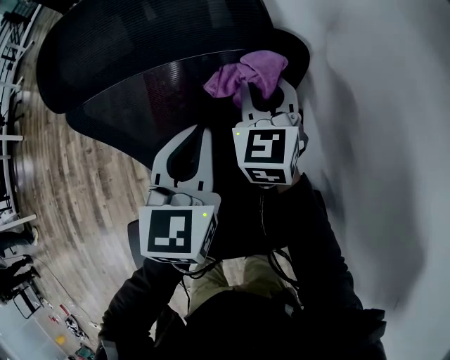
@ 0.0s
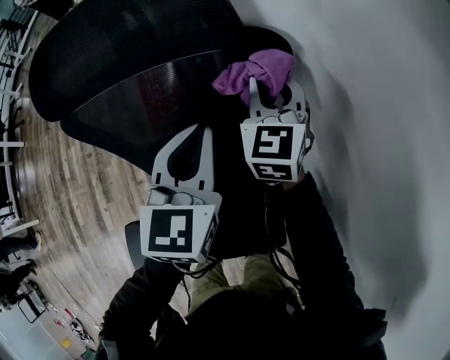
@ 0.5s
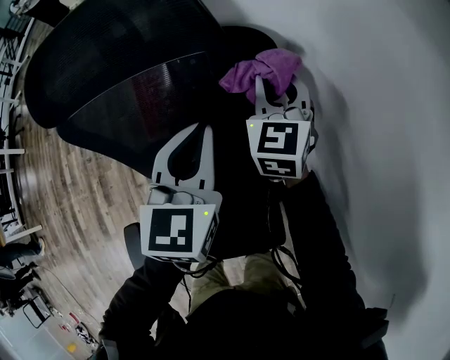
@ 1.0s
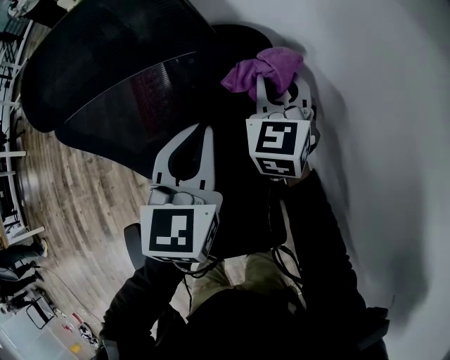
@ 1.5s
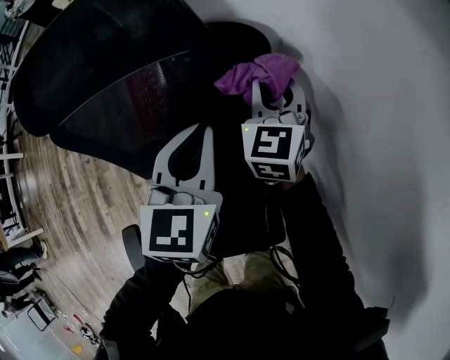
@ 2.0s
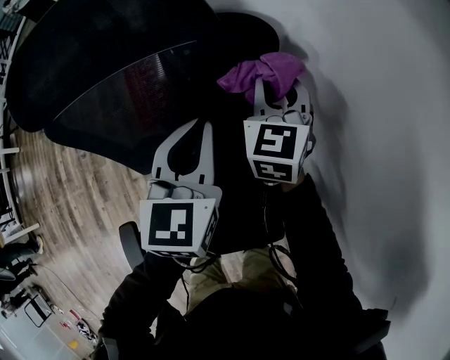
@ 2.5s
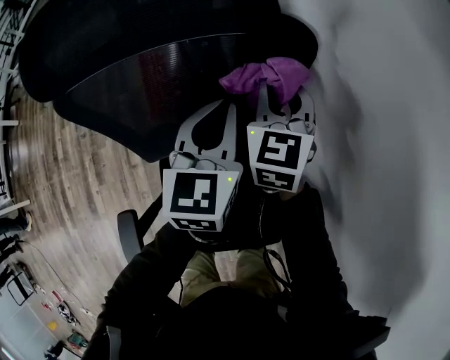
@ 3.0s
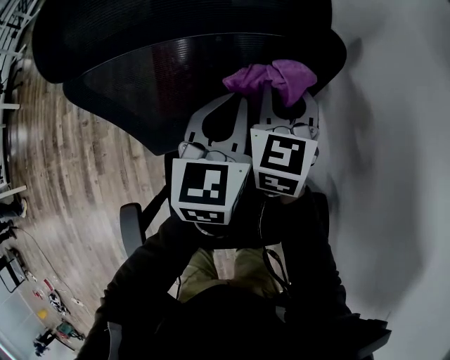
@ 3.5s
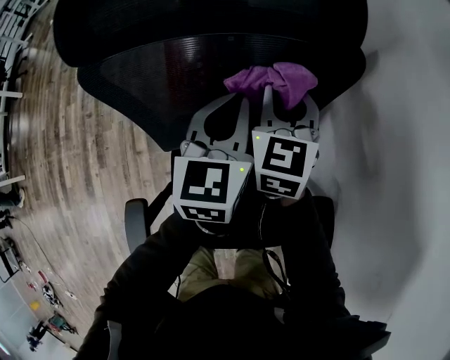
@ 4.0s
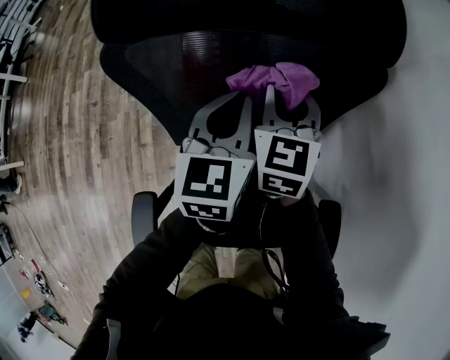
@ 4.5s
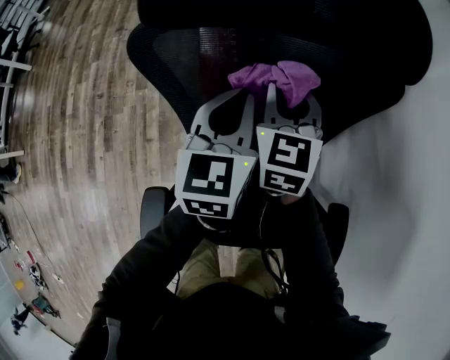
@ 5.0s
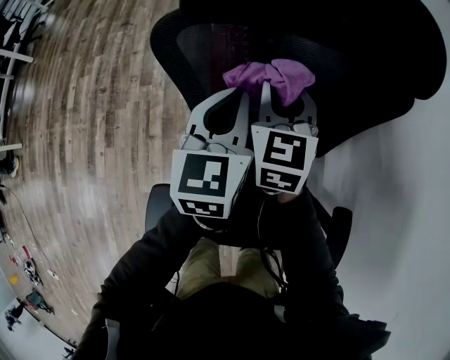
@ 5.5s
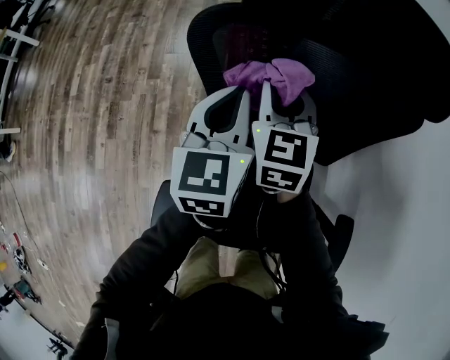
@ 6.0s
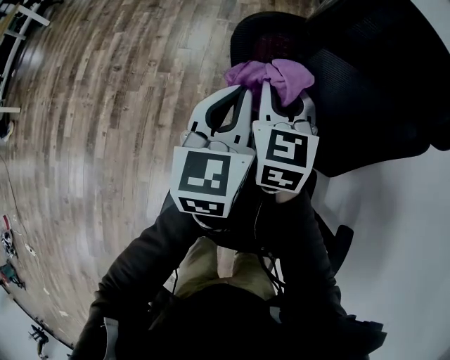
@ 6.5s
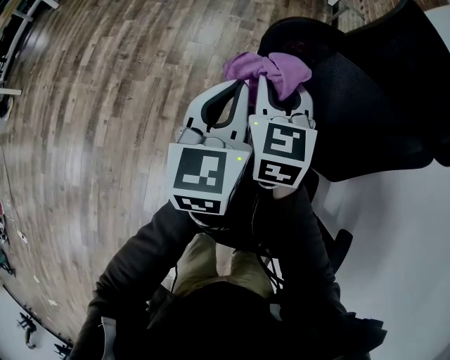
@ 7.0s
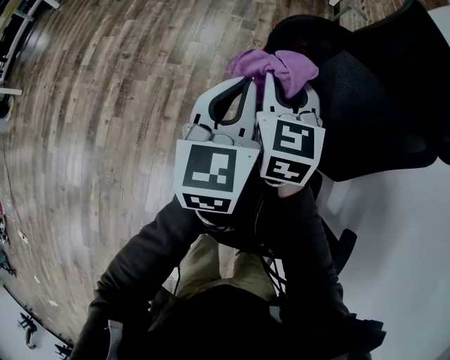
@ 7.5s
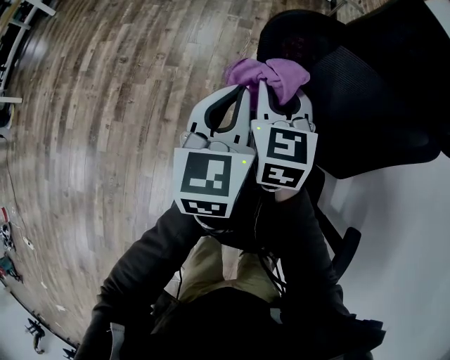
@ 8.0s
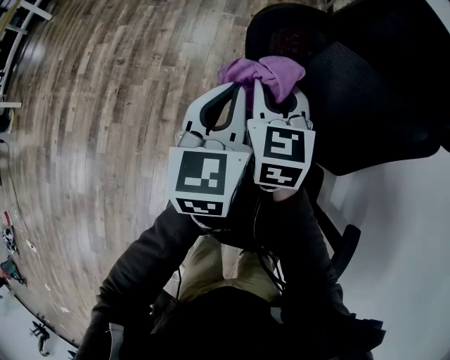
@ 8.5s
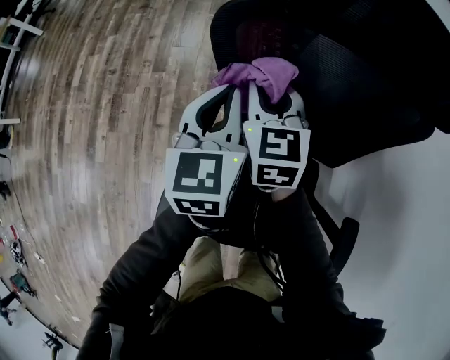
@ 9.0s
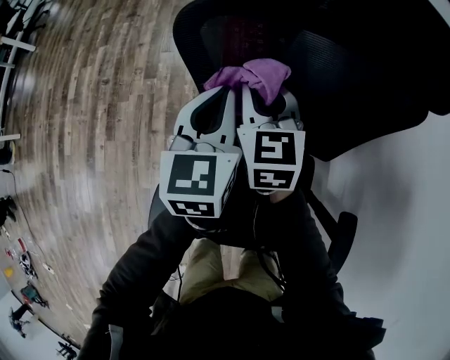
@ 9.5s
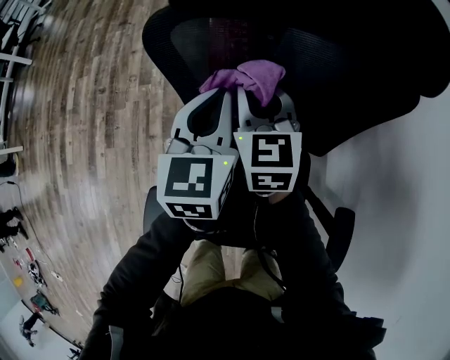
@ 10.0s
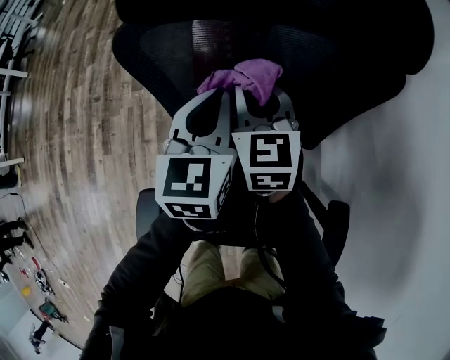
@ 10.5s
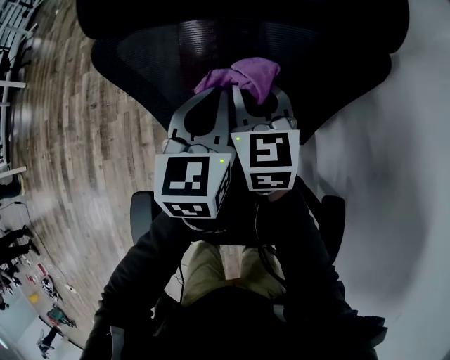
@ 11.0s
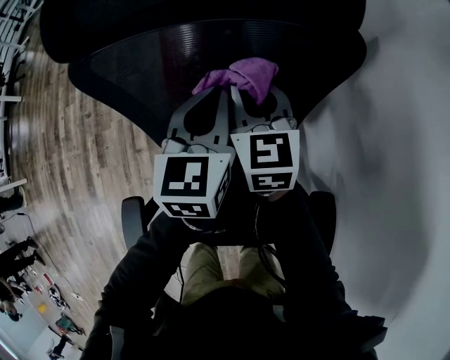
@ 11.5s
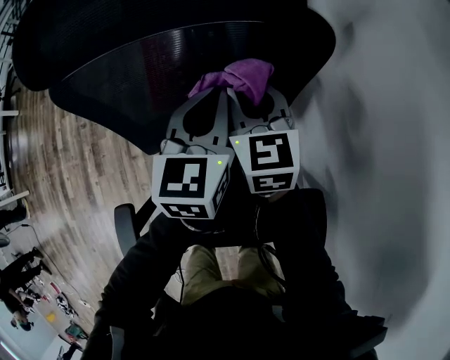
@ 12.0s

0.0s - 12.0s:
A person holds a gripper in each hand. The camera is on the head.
0.0s - 2.0s: Both grippers move to the right, roughly 10 cm.
2.0s - 4.0s: The left gripper shifts roughly 10 cm to the left and downward. The right gripper is displaced to the left by roughly 15 cm.
4.0s - 6.0s: The two grippers go approximately 20 cm to the left.
6.0s - 8.0s: Both grippers travel together to the left, some 10 cm.
8.0s - 10.0s: The two grippers go about 15 cm to the right.
10.0s - 12.0s: The two grippers go roughly 20 cm to the right.

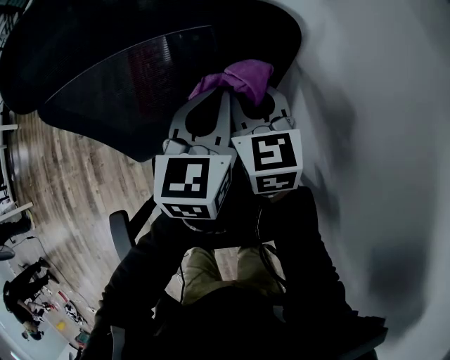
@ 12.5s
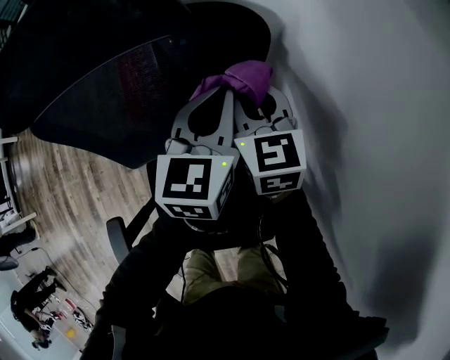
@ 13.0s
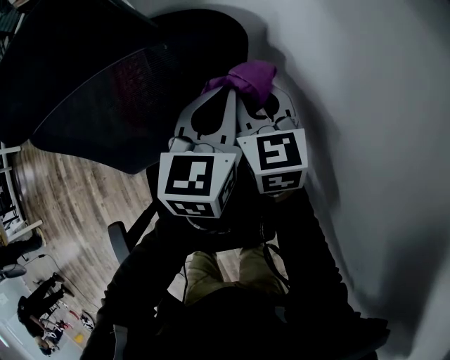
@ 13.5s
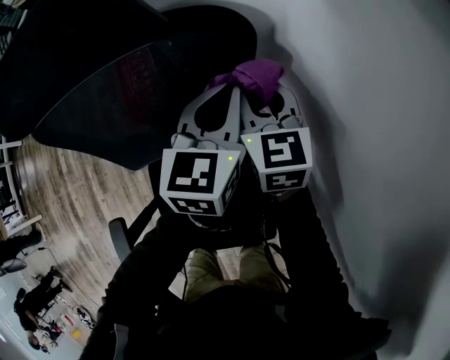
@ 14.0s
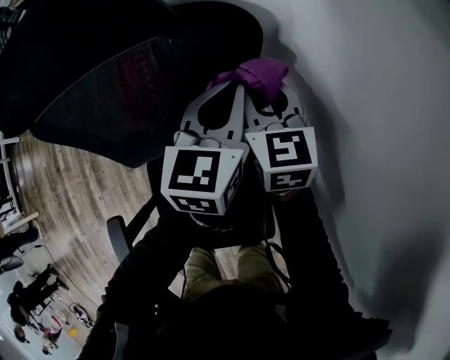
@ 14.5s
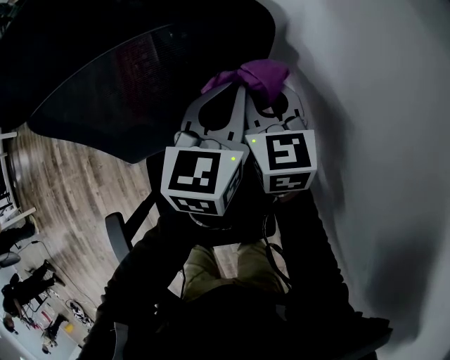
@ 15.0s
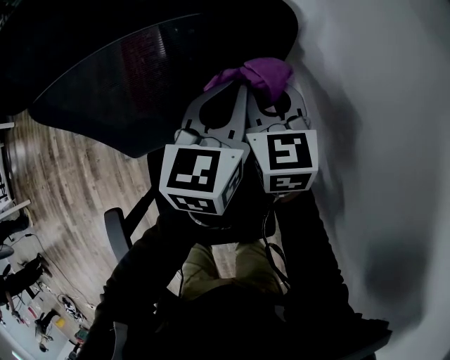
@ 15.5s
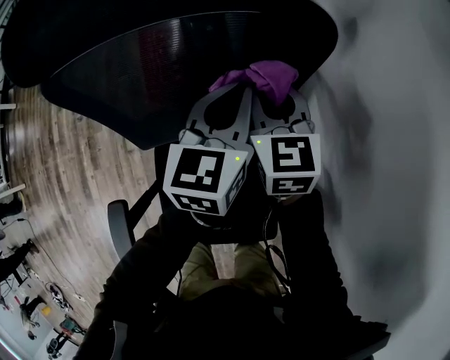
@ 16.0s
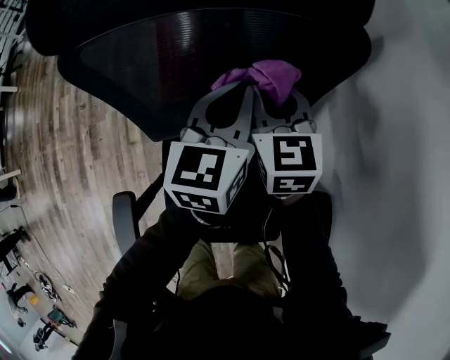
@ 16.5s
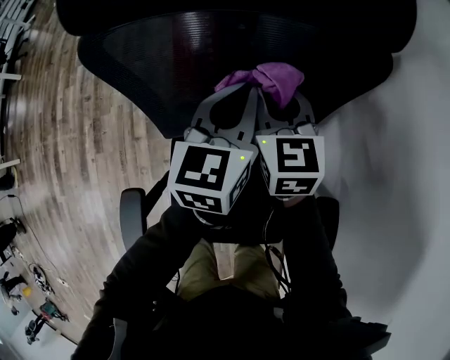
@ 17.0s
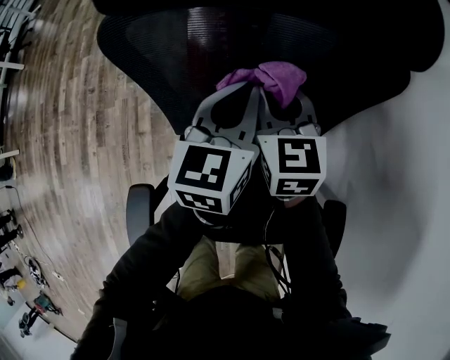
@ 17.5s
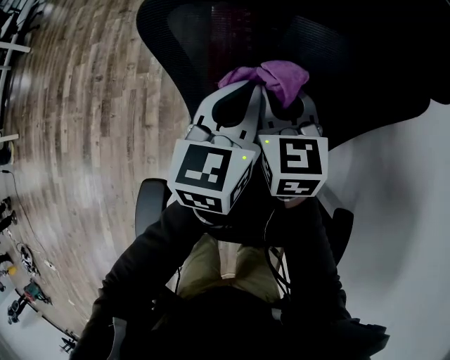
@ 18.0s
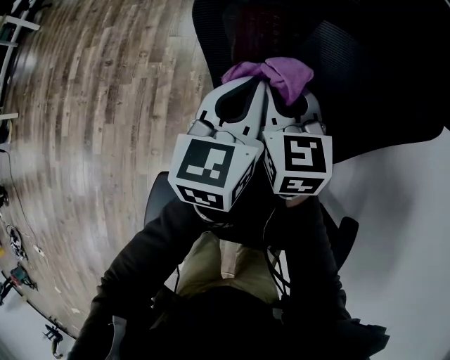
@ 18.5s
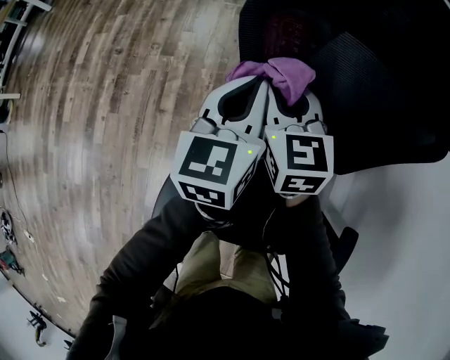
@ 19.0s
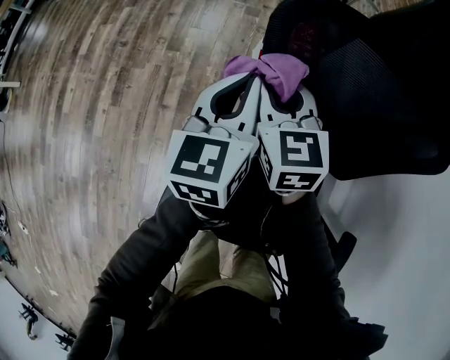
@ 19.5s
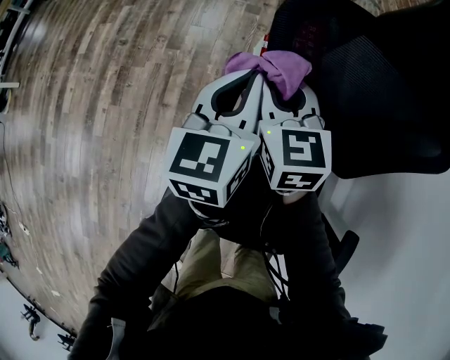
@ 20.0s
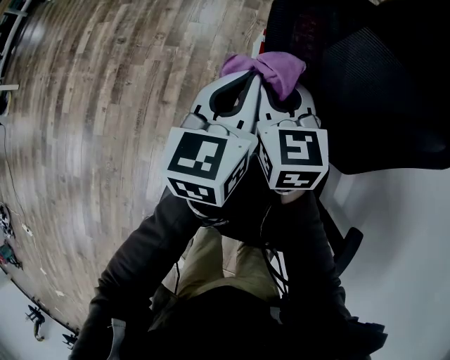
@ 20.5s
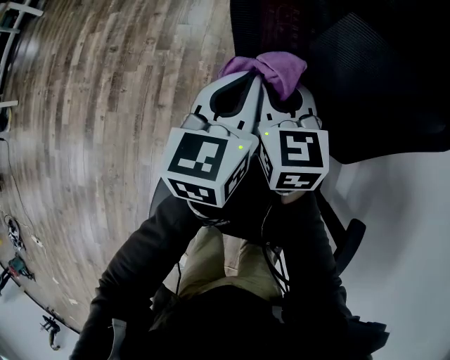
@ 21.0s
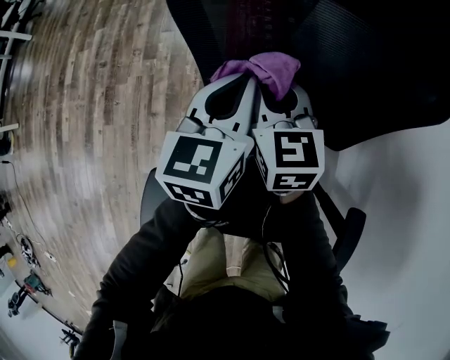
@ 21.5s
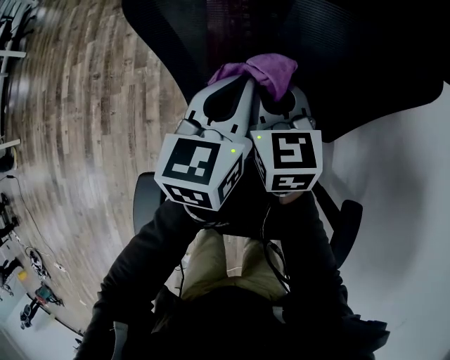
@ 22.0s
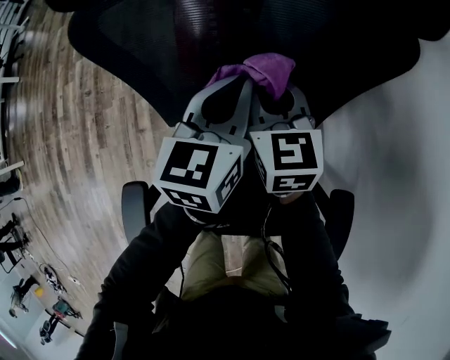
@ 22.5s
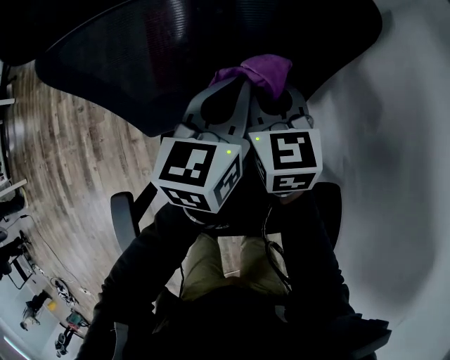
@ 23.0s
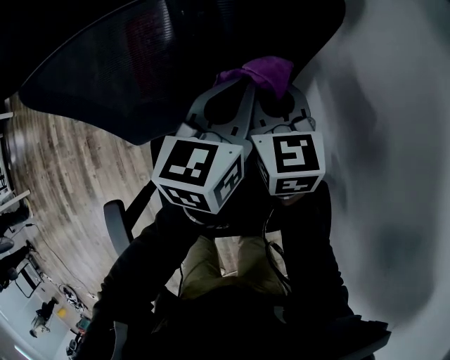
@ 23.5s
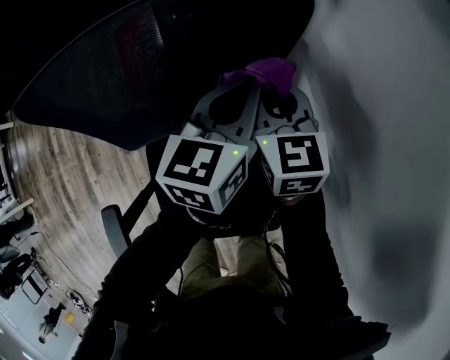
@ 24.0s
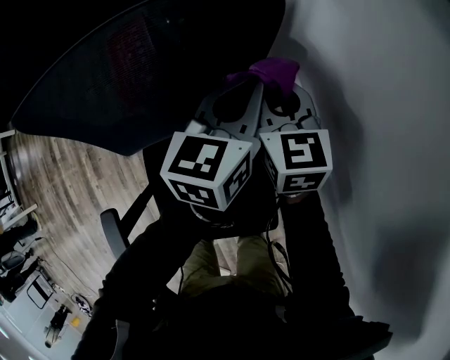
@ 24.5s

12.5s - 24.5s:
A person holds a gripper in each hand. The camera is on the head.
12.5s - 14.5s: The grippers both shift to the right by about 10 cm.
14.5s - 16.5s: Both grippers move to the left, some 15 cm.
16.5s - 18.5s: The grippers both shift to the left by about 25 cm.
18.5s - 20.5s: The two grippers go about 10 cm to the left.
20.5s - 22.5s: Both grippers travel together to the right, about 25 cm.
22.5s - 24.5s: Both grippers move to the right, roughly 25 cm.

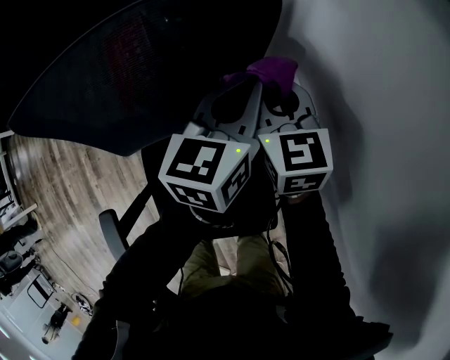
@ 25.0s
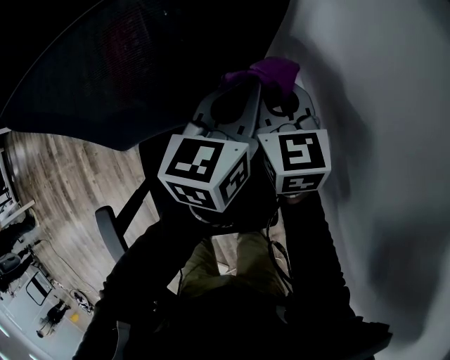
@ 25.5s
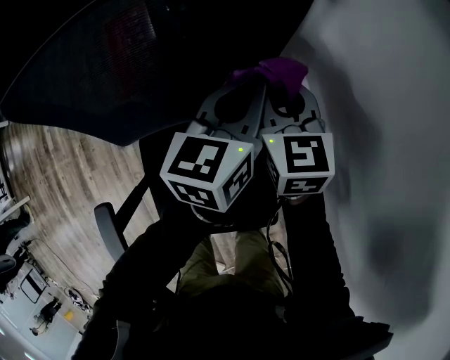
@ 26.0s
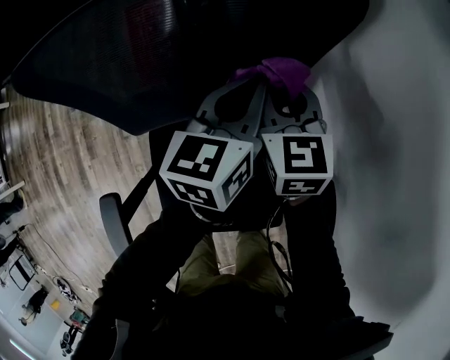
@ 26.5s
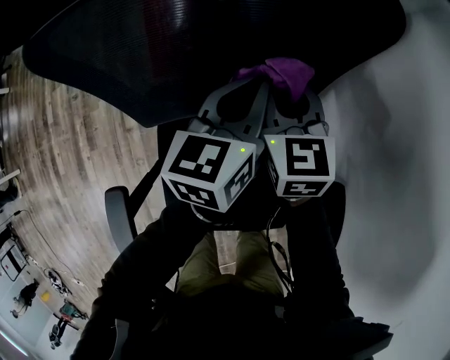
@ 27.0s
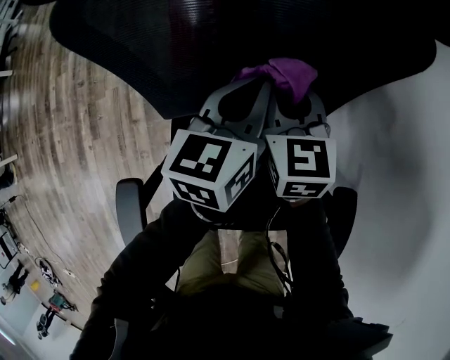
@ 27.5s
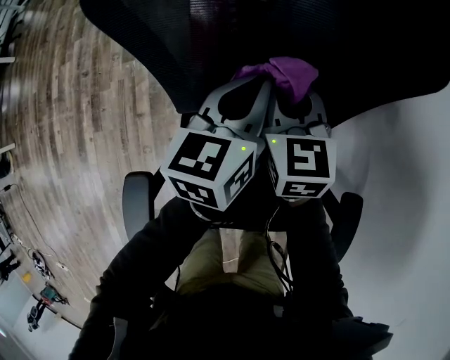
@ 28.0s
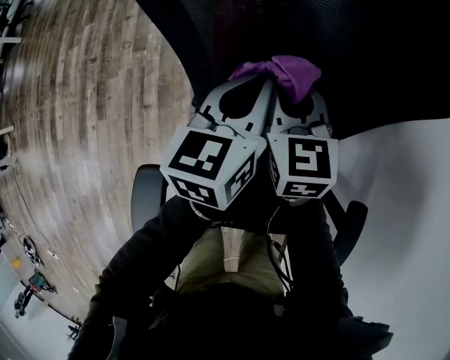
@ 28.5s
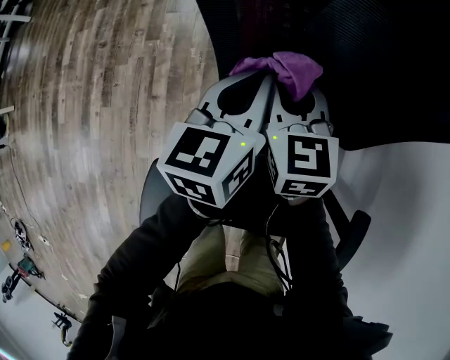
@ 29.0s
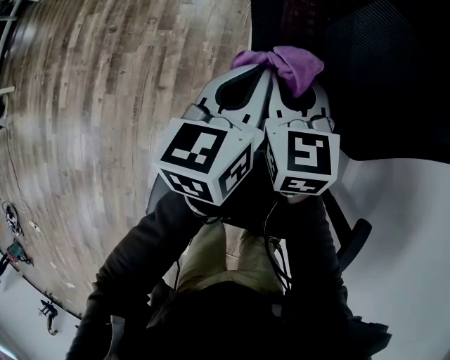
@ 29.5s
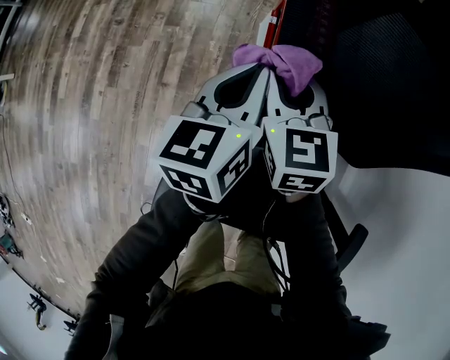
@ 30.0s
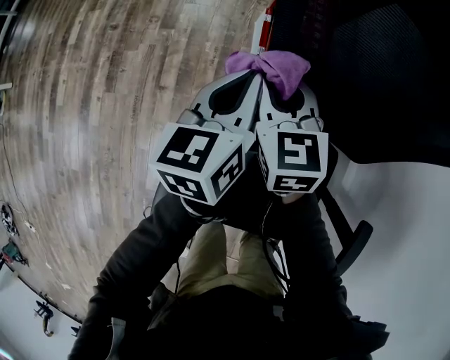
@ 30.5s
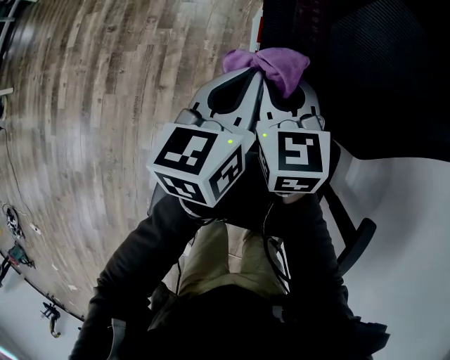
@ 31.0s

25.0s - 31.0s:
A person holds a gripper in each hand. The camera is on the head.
25.0s - 27.0s: The two grippers go roughly 15 cm to the left.
27.0s - 29.0s: The grippers both shift to the left by about 25 cm.
29.0s - 31.0s: The grippers both shift to the left by some 10 cm.
